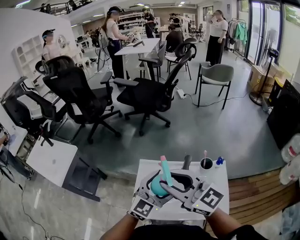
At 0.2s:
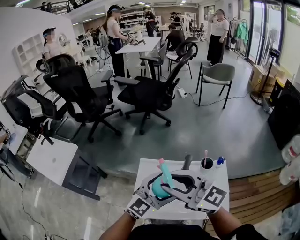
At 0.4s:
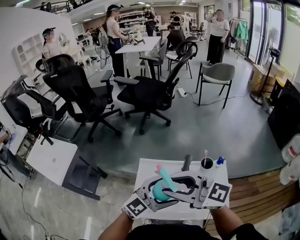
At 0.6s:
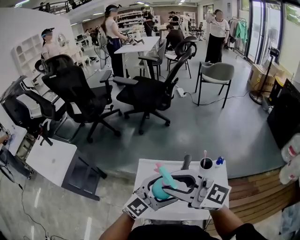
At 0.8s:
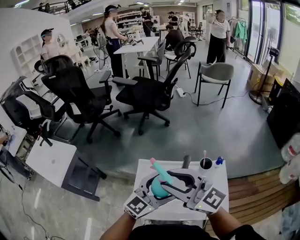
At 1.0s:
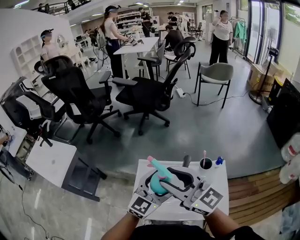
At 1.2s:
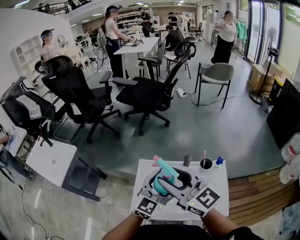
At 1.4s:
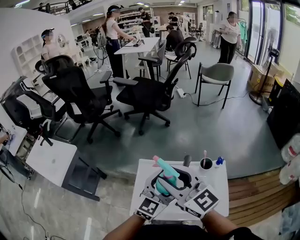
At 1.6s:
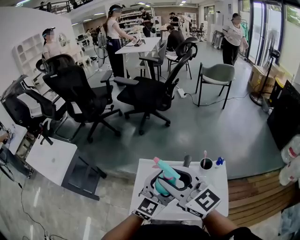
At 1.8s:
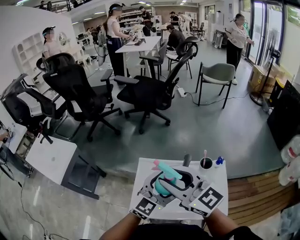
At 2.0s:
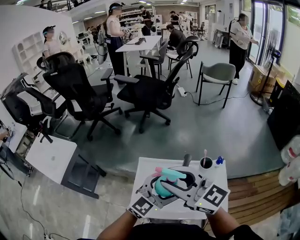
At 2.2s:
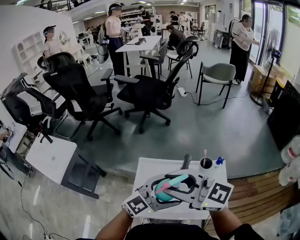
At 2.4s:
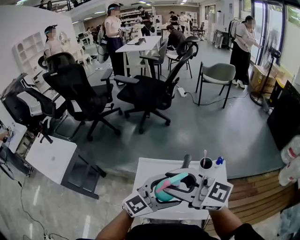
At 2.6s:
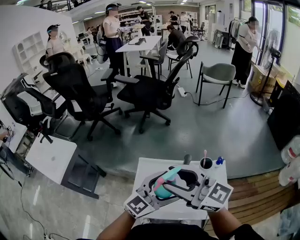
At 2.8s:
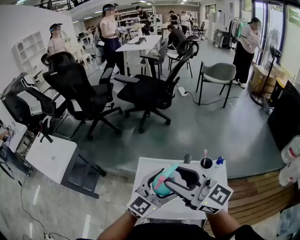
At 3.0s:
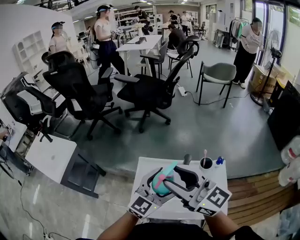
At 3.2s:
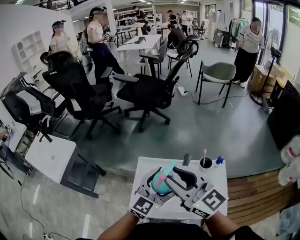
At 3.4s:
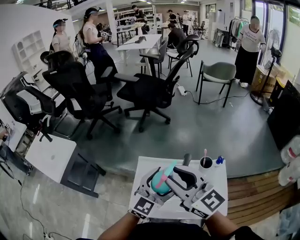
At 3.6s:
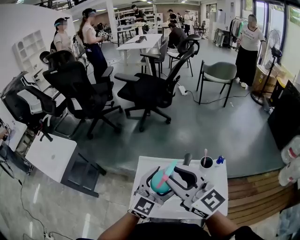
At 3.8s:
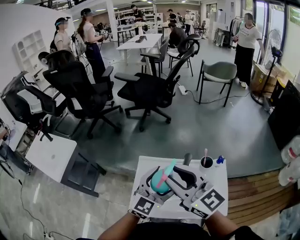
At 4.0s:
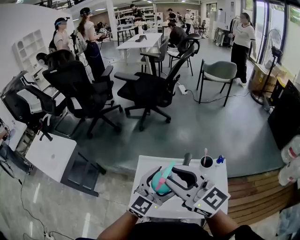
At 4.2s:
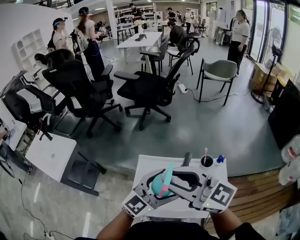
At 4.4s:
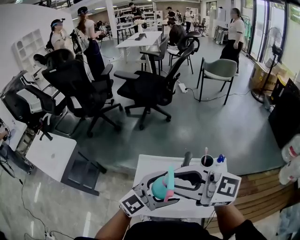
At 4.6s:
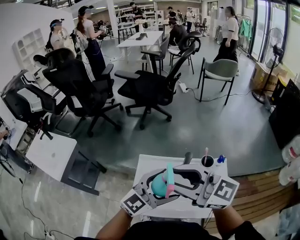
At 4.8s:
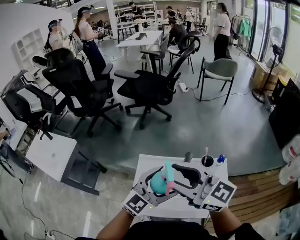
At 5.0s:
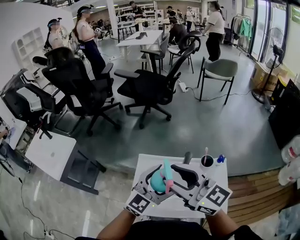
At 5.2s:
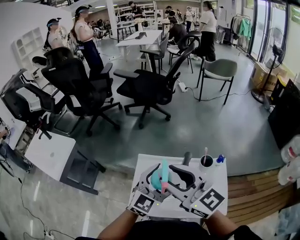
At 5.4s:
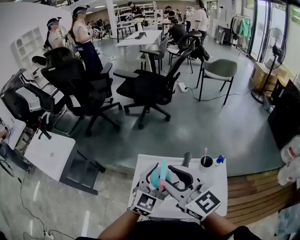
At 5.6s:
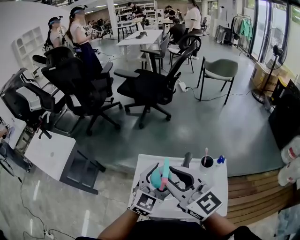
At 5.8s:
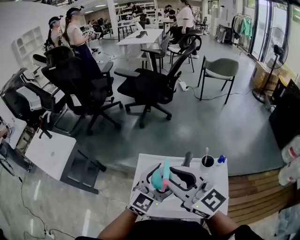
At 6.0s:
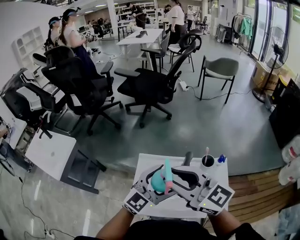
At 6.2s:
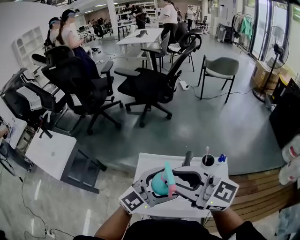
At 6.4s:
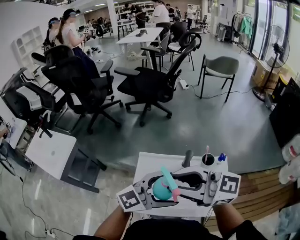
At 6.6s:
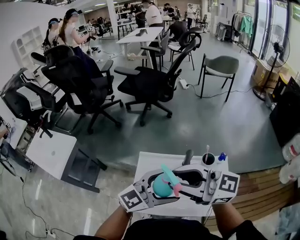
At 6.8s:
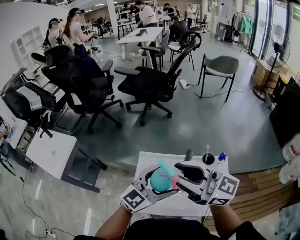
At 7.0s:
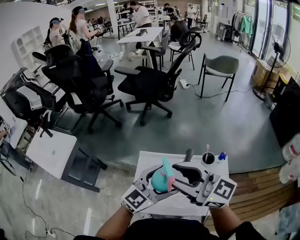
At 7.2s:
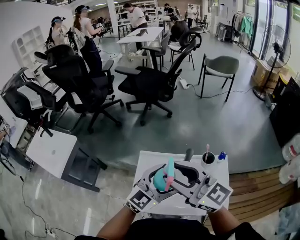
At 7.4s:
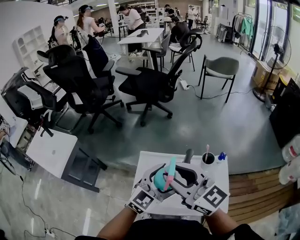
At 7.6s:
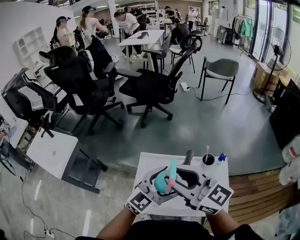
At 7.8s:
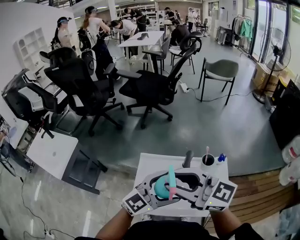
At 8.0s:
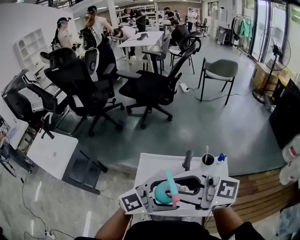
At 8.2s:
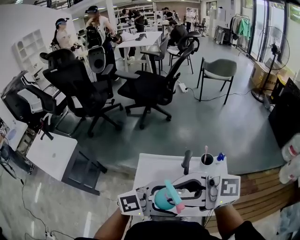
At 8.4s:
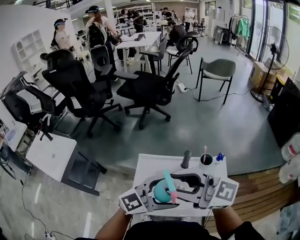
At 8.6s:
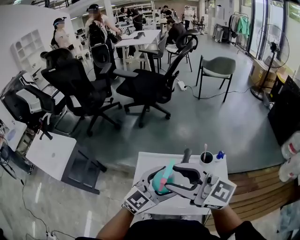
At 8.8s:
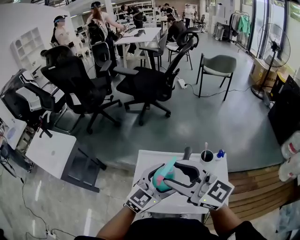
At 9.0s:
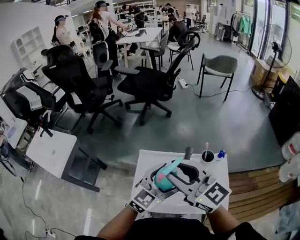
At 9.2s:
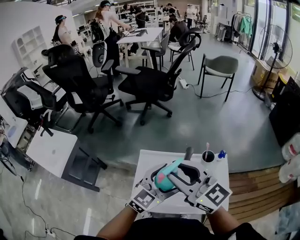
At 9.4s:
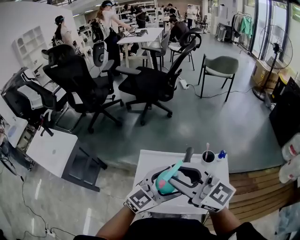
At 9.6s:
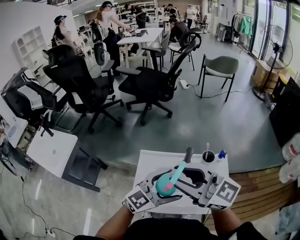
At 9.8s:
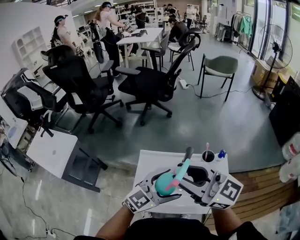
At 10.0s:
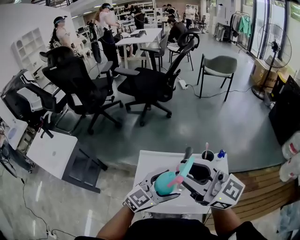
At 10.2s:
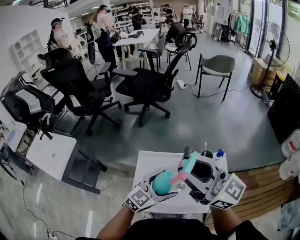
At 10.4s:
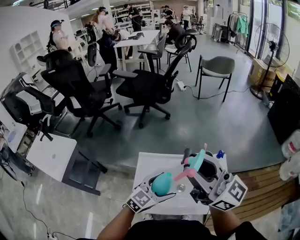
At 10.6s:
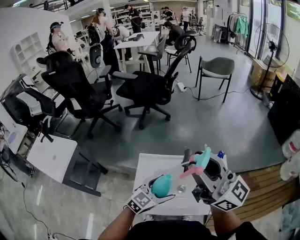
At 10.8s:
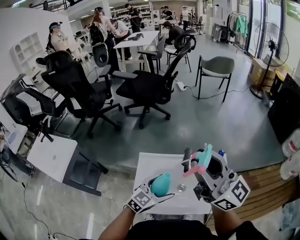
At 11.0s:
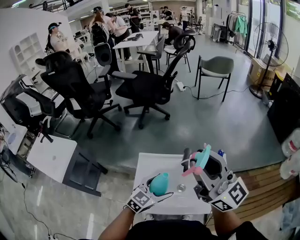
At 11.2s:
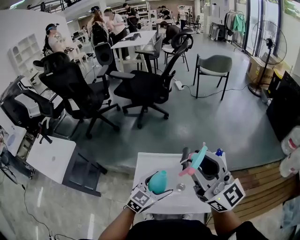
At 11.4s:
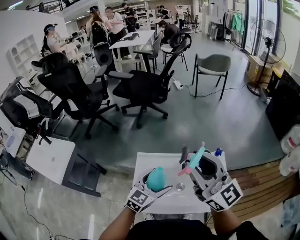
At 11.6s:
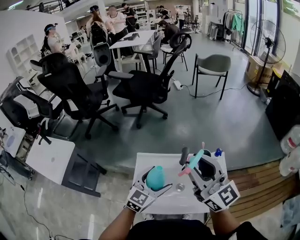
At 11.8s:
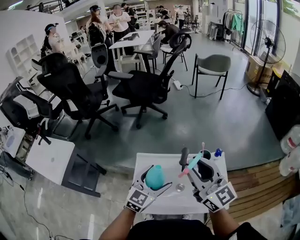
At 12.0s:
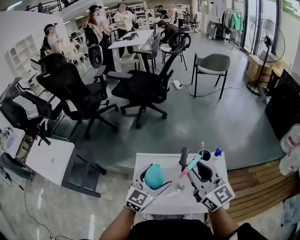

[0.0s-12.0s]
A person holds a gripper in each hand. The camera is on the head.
0.0s to 1.6s: The grippers make only small movements.
3.0s to 4.4s: The right gripper swivels roughly 20 degrees.
9.0s to 10.4s: The left gripper moves downward, some 5 cm. Meanwhile the right gripper is displaced upward and to the right by about 10 cm, and swivels about 20 degrees.
10.4s to 12.0s: The right gripper heads downward, covering roughly 10 cm, and changes its angle by about 20 degrees, while the left gripper shifts by approximately 5 cm.

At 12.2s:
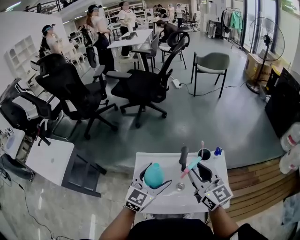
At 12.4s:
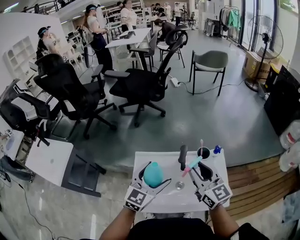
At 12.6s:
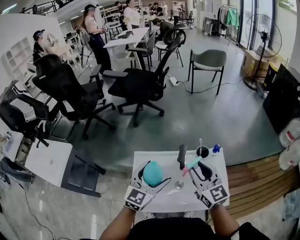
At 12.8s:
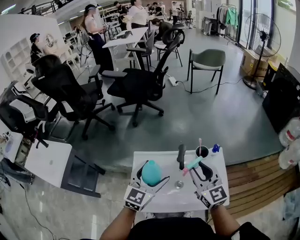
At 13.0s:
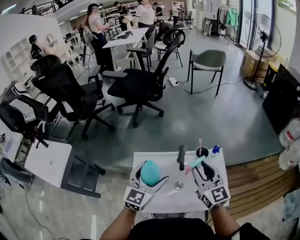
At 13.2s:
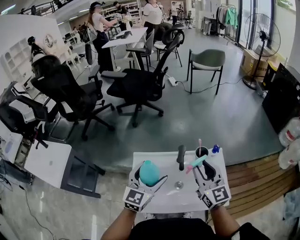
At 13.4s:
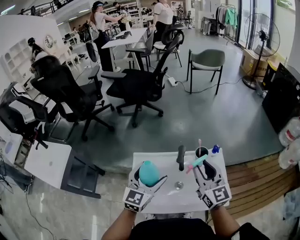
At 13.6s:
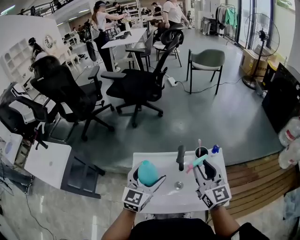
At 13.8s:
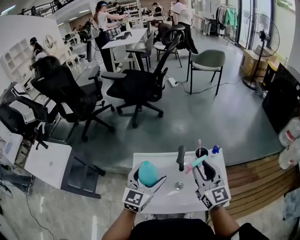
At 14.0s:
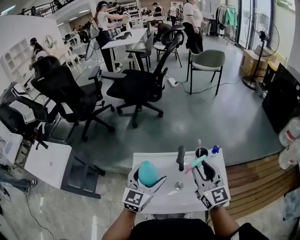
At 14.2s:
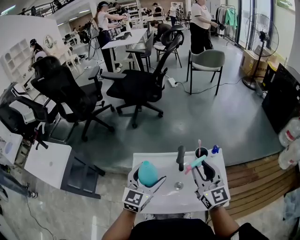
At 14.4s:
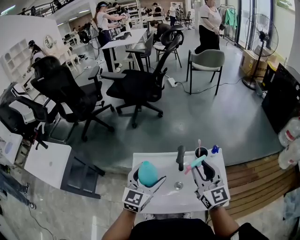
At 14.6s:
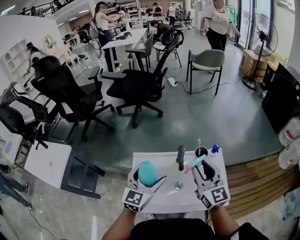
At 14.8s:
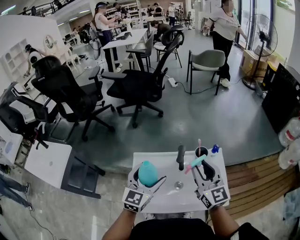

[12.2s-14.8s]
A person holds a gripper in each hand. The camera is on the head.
12.2s to 13.4s: The grippers stay close to where they were, moving slightly.
13.4s to 14.8s: Both grippers stay about where they are.

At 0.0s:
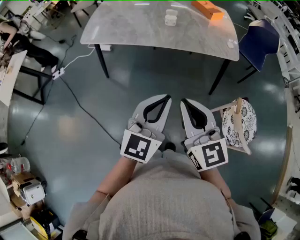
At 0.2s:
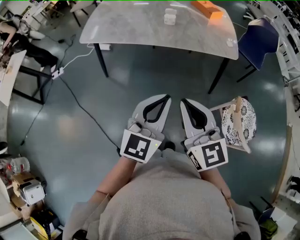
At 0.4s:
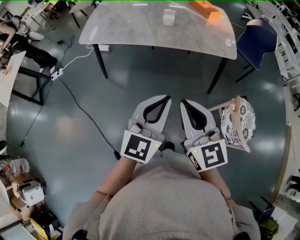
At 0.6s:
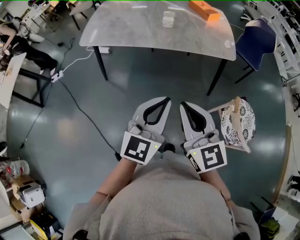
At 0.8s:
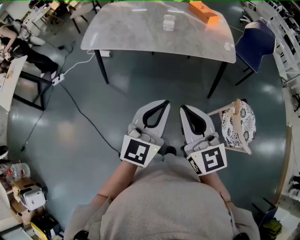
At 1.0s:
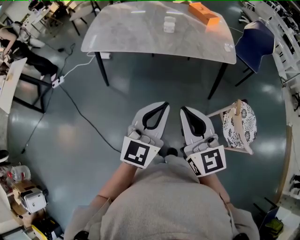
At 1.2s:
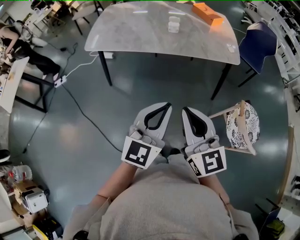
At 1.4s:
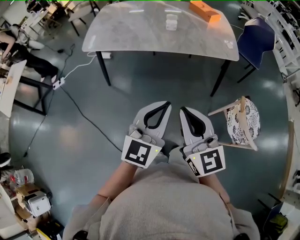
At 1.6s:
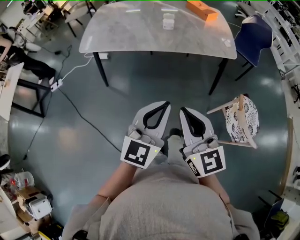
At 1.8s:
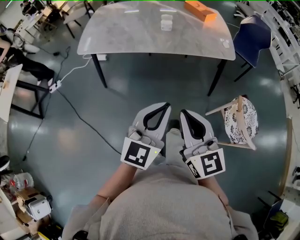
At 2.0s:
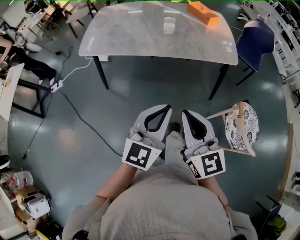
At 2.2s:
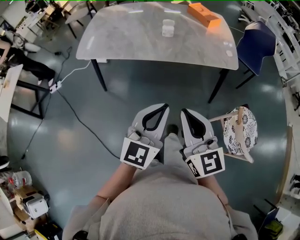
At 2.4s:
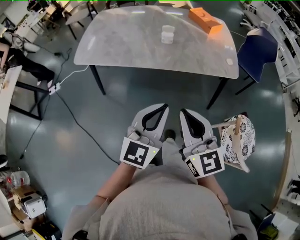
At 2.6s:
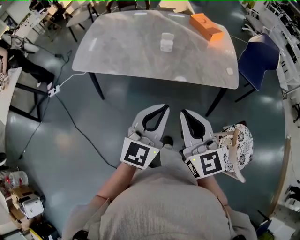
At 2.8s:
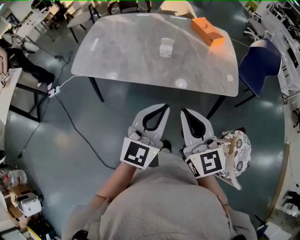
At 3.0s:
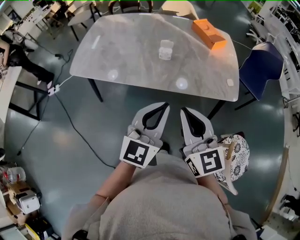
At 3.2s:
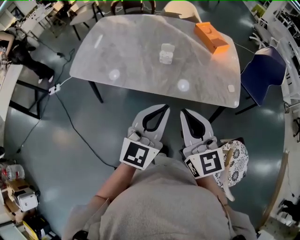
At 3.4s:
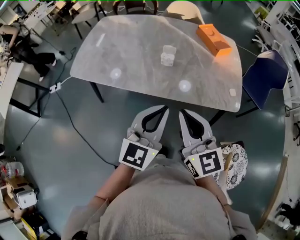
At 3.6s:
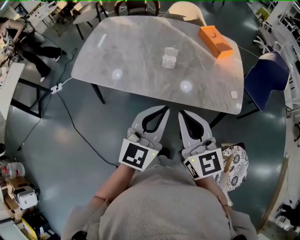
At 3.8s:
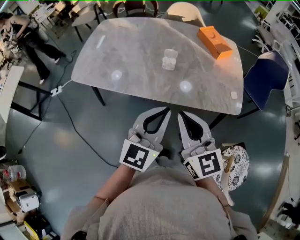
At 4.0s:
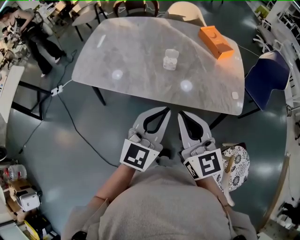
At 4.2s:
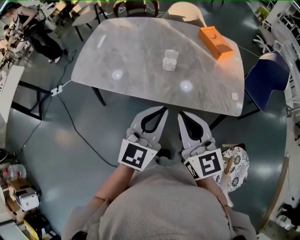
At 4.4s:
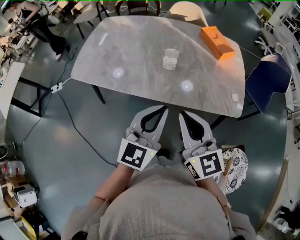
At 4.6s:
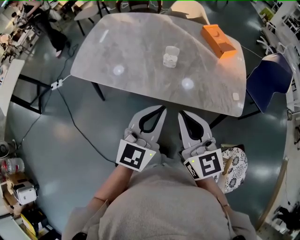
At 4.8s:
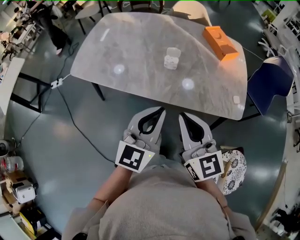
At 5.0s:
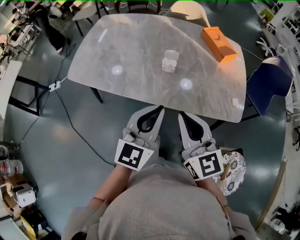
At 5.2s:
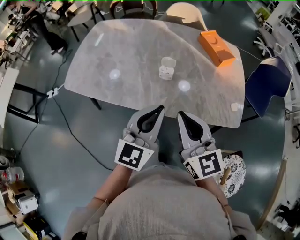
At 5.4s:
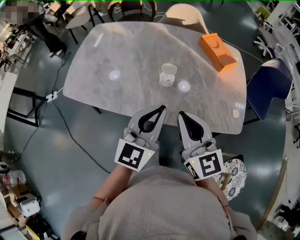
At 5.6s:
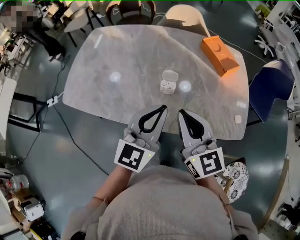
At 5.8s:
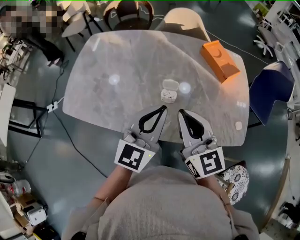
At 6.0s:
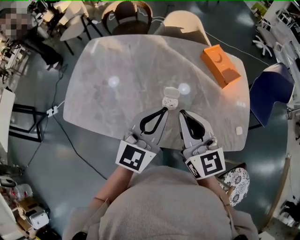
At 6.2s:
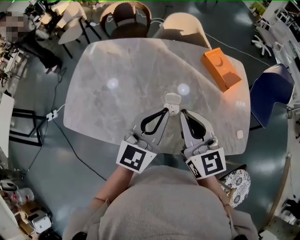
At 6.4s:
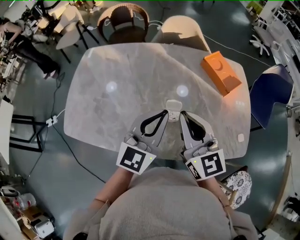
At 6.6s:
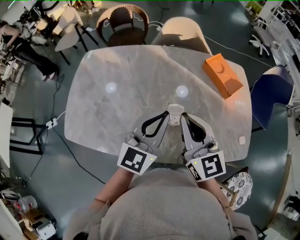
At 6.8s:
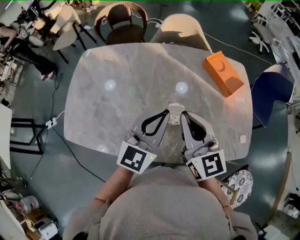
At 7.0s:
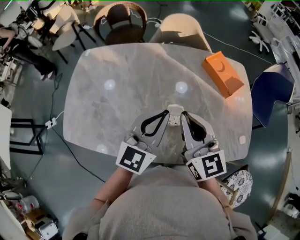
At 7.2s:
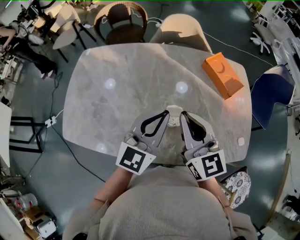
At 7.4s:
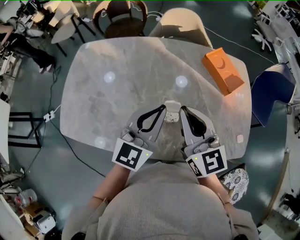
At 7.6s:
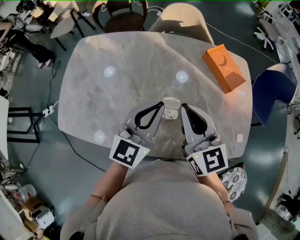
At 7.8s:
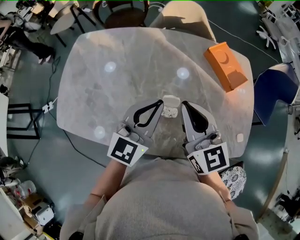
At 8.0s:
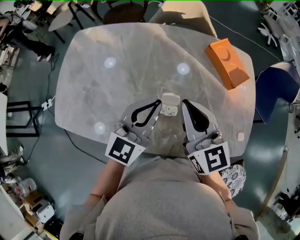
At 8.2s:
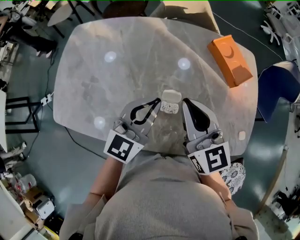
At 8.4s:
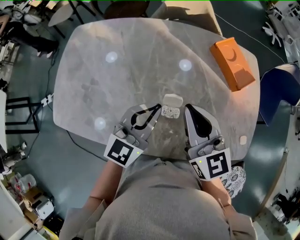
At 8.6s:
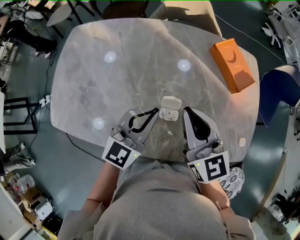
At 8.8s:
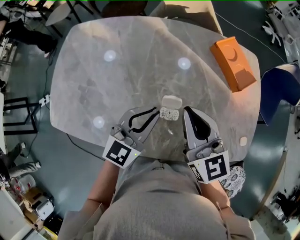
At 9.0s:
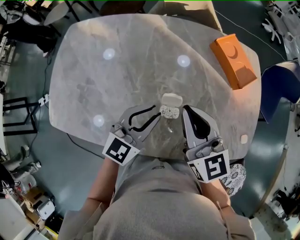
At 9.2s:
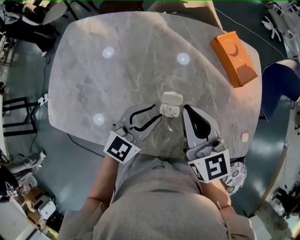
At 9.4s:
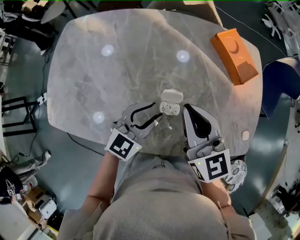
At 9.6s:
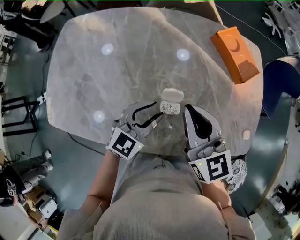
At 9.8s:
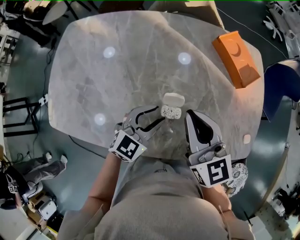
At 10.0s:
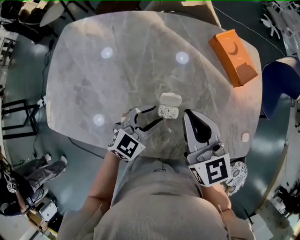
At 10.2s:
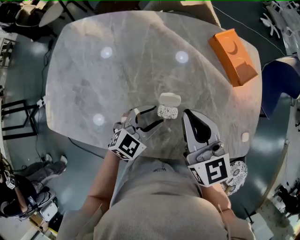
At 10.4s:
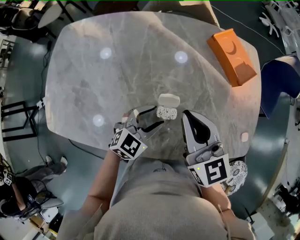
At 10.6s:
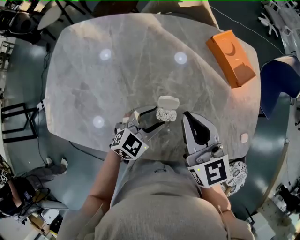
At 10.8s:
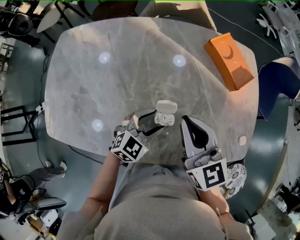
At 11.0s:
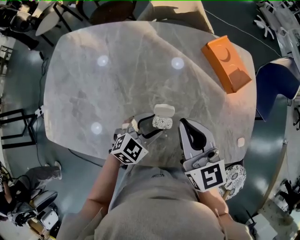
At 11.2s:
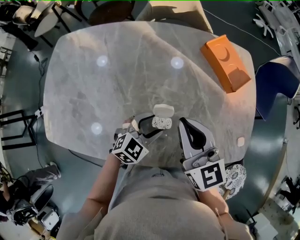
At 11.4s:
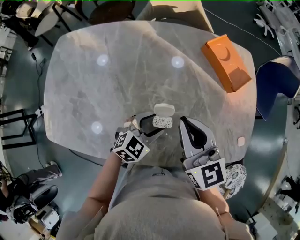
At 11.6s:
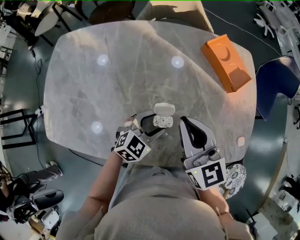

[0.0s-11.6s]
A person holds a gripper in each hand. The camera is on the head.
0.0s to 1.4s: The grippers make only small movements.
1.4s to 2.8s: Both grippers move forward, about 20 cm.
2.8s to 4.4s: Both grippers travel together forward, roughly 10 cm.
4.4s to 5.8s: Both grippers move forward, some 20 cm.
5.8s to 7.2s: The two grippers go about 10 cm forward.
7.2s to 8.8s: The left gripper travels downward by about 10 cm, while the right gripper heads downward, covering roughly 5 cm.
8.8s to 10.2s: The left gripper heads downward, covering approximately 10 cm, and opens up.
10.2s to 11.6s: The grippers make only small movements.
